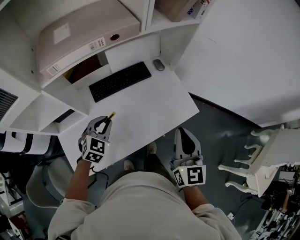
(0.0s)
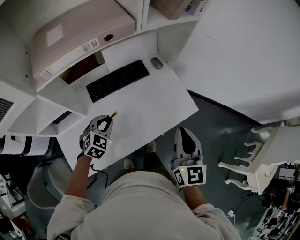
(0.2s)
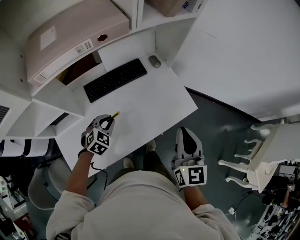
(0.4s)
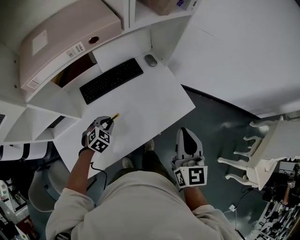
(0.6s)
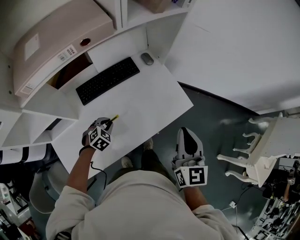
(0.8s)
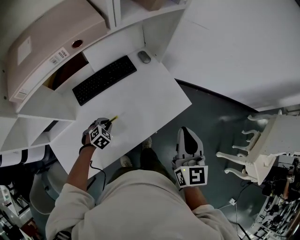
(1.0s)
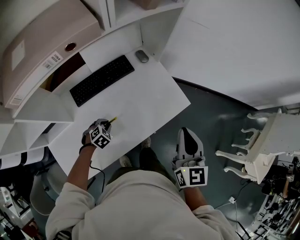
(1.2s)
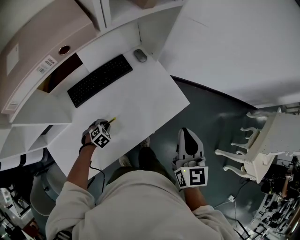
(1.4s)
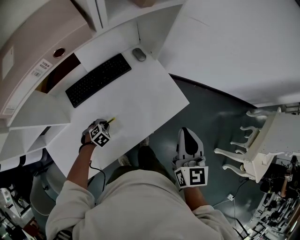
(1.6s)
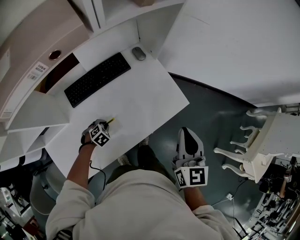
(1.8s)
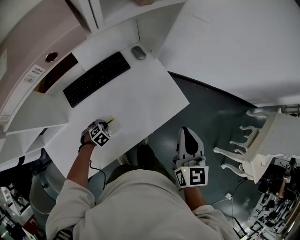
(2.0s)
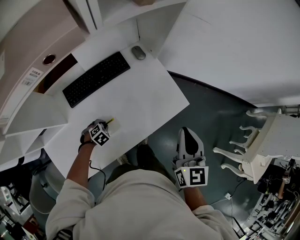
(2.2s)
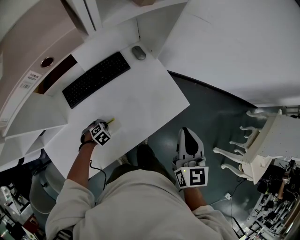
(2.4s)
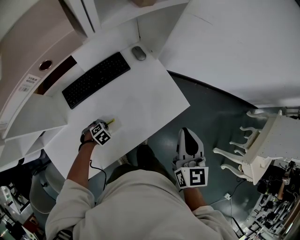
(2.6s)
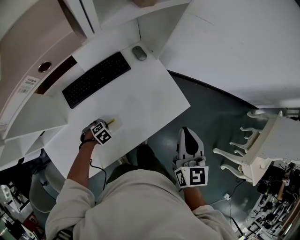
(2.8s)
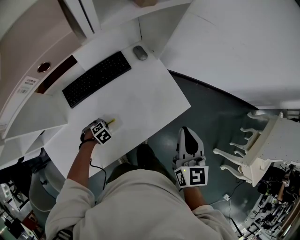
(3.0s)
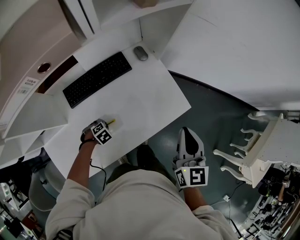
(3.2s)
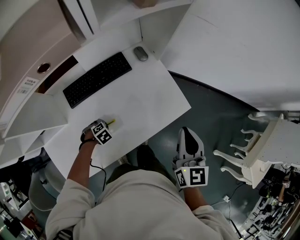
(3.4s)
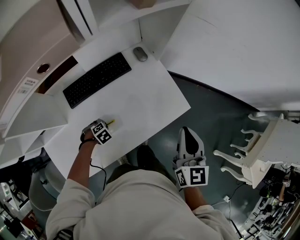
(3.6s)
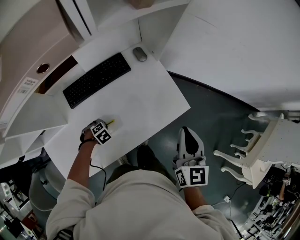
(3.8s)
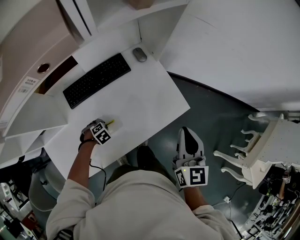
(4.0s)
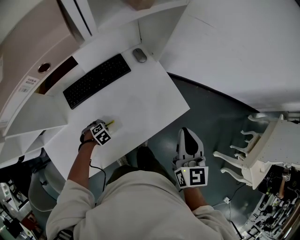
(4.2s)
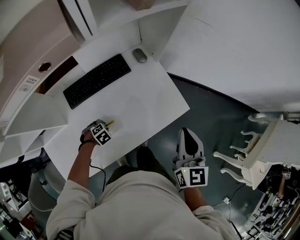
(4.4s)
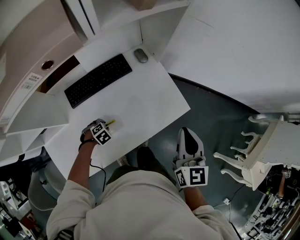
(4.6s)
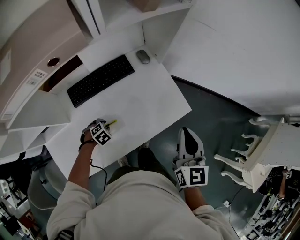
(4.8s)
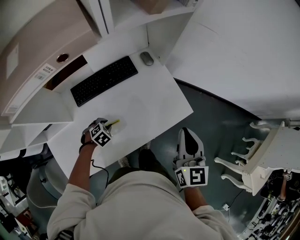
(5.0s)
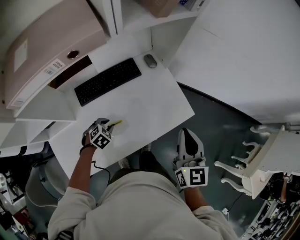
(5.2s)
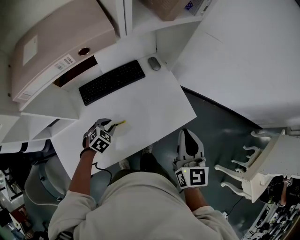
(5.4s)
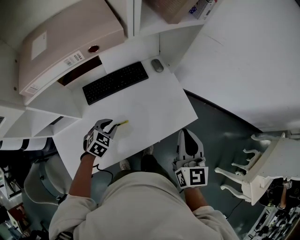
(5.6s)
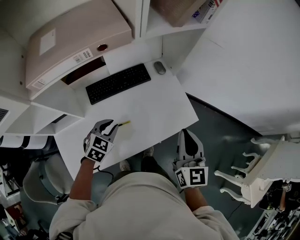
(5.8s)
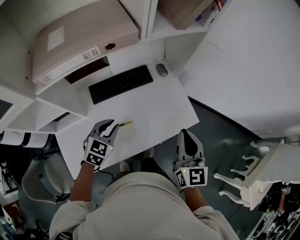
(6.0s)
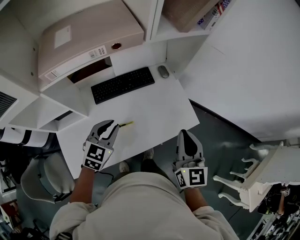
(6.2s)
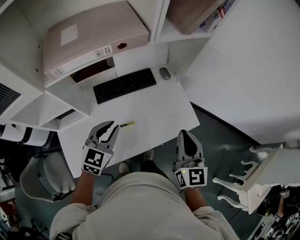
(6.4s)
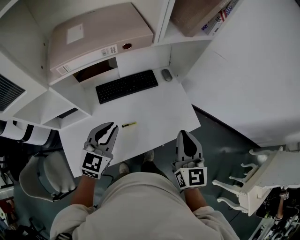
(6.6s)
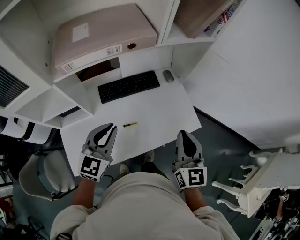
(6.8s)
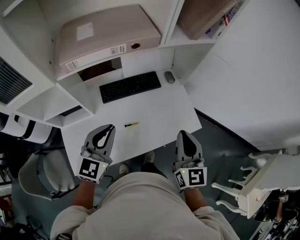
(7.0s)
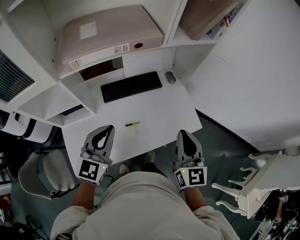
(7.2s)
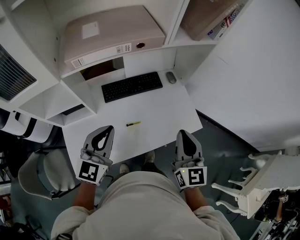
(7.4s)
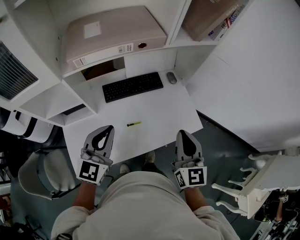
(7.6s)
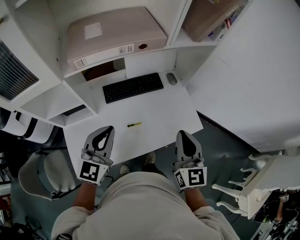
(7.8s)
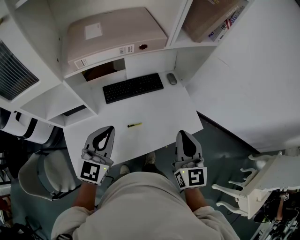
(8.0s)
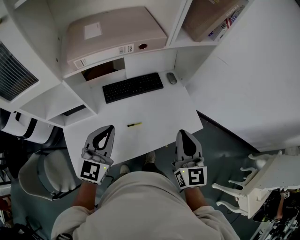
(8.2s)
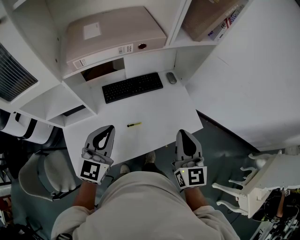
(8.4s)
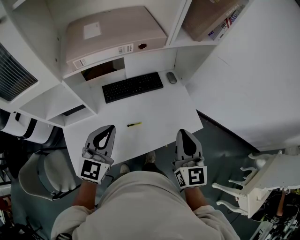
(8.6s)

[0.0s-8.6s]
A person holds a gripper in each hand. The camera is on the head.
0.0s to 1.4s: The left gripper heads downward, covering approximately 25 cm, and points its fingers roughly 30 degrees further downward, while the right gripper heads to the right and forward, covering approximately 10 cm.
1.4s to 2.8s: The left gripper heads downward, covering approximately 5 cm. The right gripper moves about 5 cm.
2.8s to 4.4s: The two grippers keep their place.
4.4s to 5.8s: The right gripper shifts by some 10 cm. Meanwhile the left gripper heads upward, covering approximately 25 cm, and points its fingers some 40 degrees further upward.
5.8s to 7.2s: The right gripper travels to the left by approximately 5 cm. Meanwhile the left gripper heads upward and backward, covering approximately 20 cm, and tips its fingers upward by roughly 30 degrees.
7.2s to 8.6s: The grippers make only small movements.

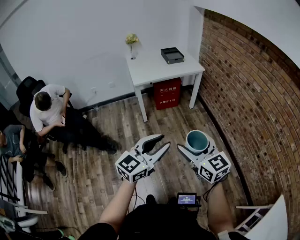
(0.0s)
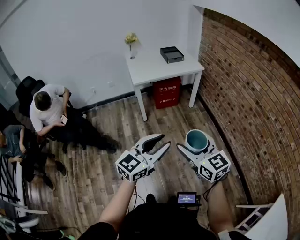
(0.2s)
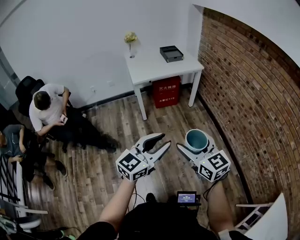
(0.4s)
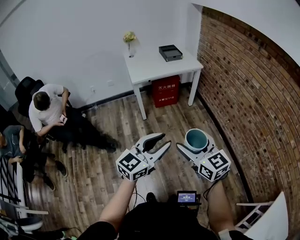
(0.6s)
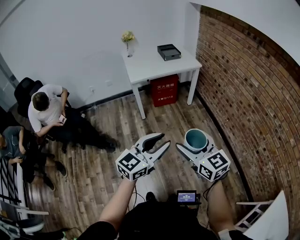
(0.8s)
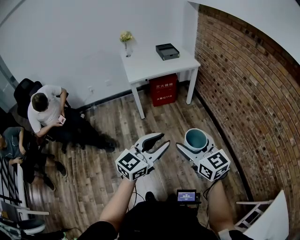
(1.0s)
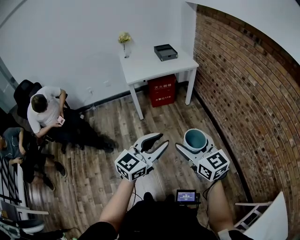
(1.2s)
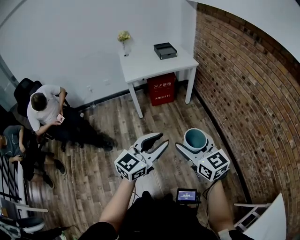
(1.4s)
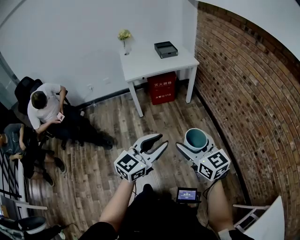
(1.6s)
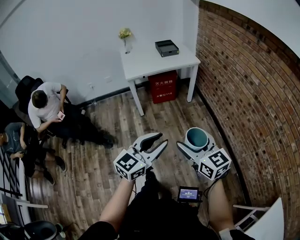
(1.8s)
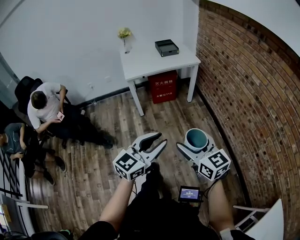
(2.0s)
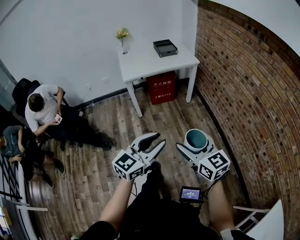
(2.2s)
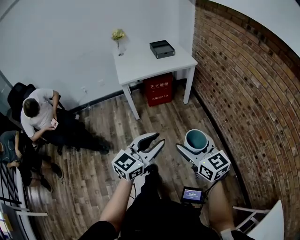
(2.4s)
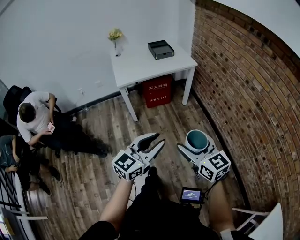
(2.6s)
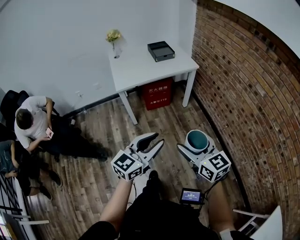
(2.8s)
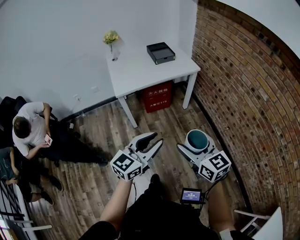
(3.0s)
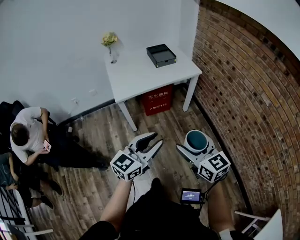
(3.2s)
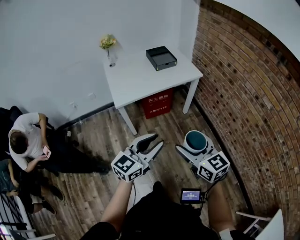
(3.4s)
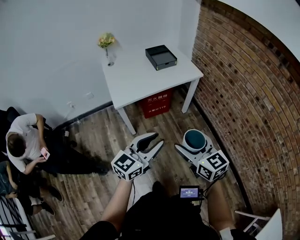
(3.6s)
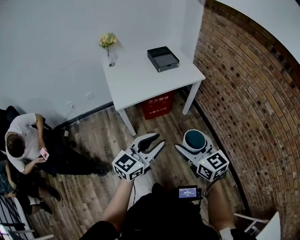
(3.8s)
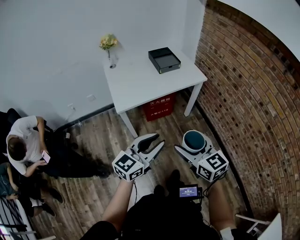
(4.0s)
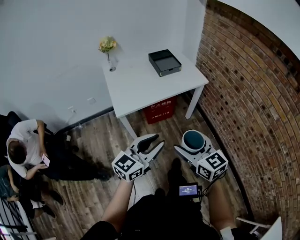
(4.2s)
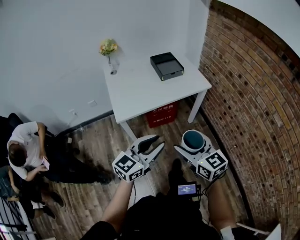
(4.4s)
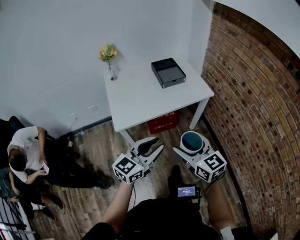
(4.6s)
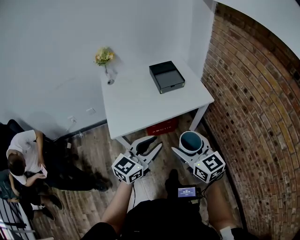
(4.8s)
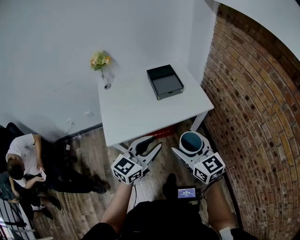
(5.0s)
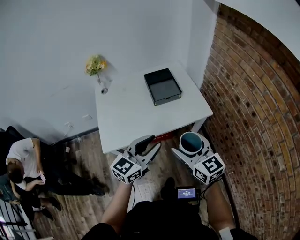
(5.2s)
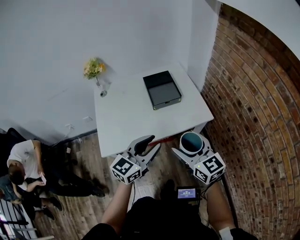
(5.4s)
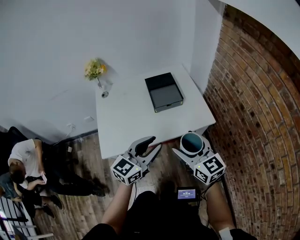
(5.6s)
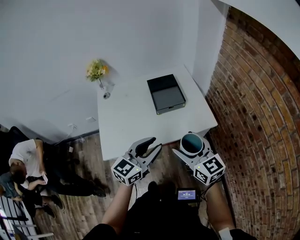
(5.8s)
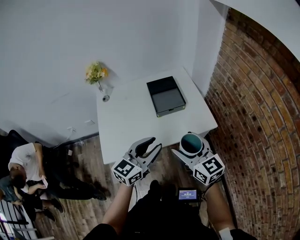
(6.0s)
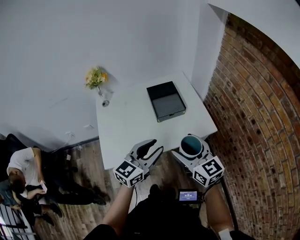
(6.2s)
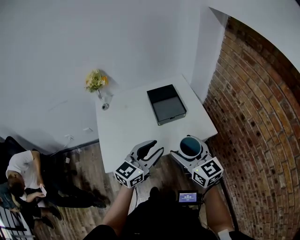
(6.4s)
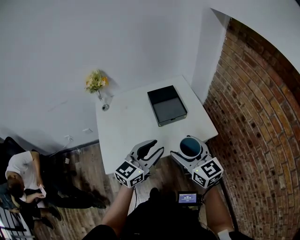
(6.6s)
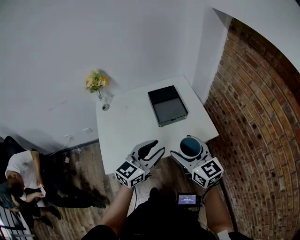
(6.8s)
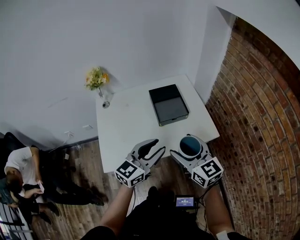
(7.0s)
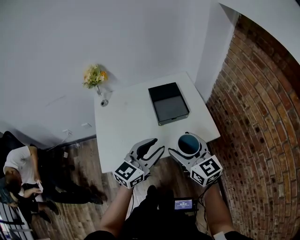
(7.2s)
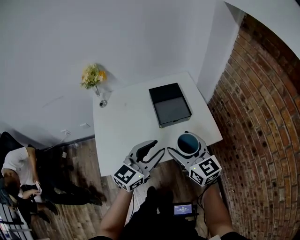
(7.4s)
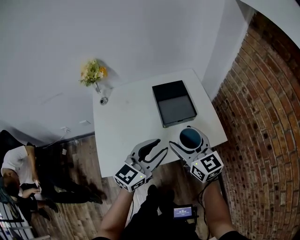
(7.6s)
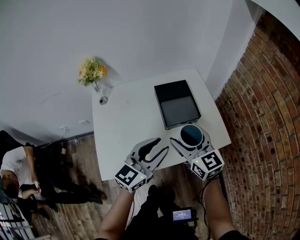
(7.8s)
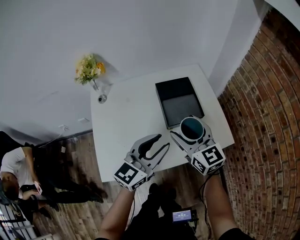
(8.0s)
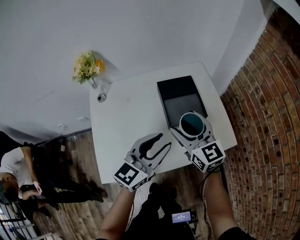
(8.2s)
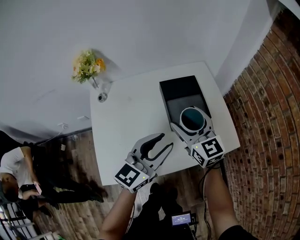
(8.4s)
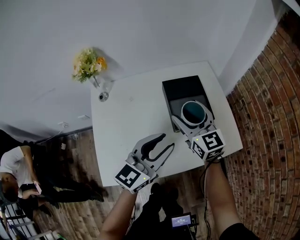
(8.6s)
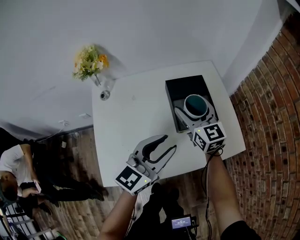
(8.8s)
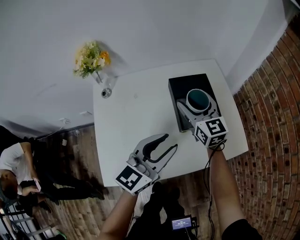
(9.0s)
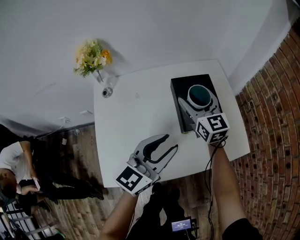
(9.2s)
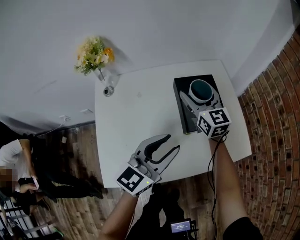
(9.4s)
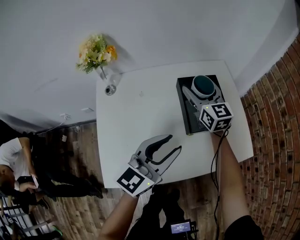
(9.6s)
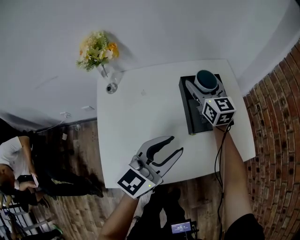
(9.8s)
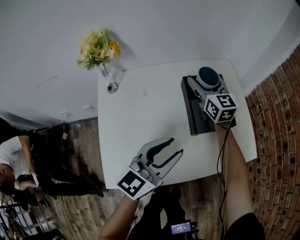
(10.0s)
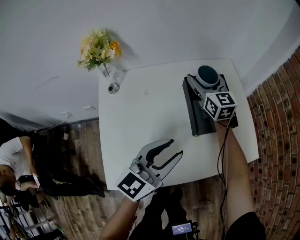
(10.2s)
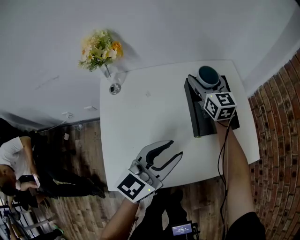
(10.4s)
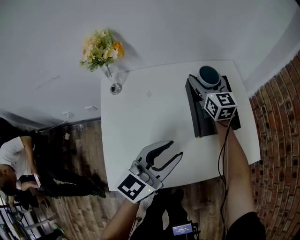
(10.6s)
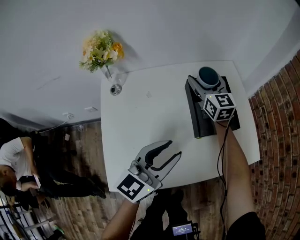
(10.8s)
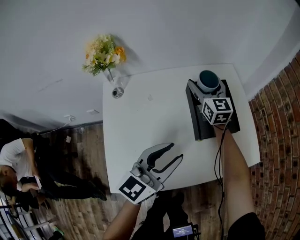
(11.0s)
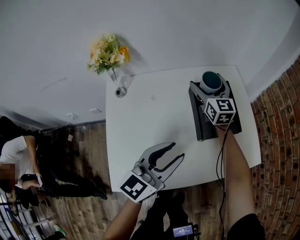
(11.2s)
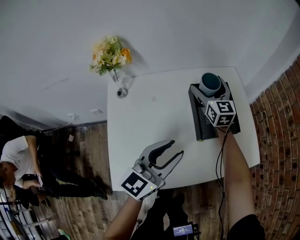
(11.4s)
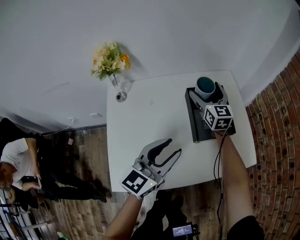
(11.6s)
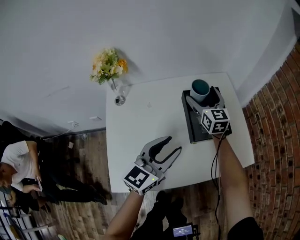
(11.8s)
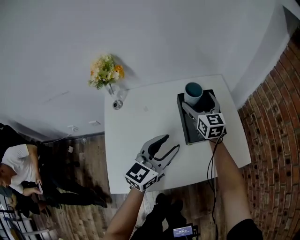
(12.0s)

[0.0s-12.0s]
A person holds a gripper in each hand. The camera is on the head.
0.0s to 1.6s: Both grippers travel together to the right, approximately 10 cm.
1.6s to 3.0s: Both grippers travel together forward, roughly 25 cm.
3.0s to 4.4s: The right gripper is displaced forward and to the left by roughly 25 cm. Meanwhile the left gripper goes approximately 20 cm forward.
4.4s to 6.0s: Both grippers travel together forward, about 30 cm.
6.0s to 7.6s: The left gripper heads forward, covering roughly 10 cm. The right gripper is displaced forward and to the left by about 15 cm.
7.6s to 9.0s: The left gripper moves forward and to the left, approximately 10 cm; the right gripper heads forward, covering about 20 cm.
9.0s to 10.4s: The right gripper goes some 10 cm forward.
10.4s to 12.0s: The right gripper moves about 5 cm.

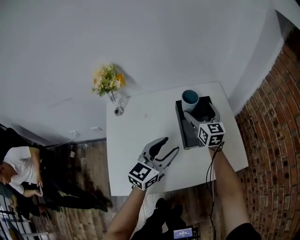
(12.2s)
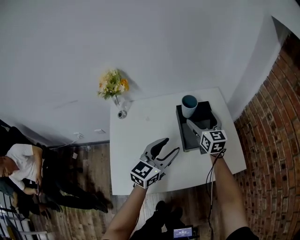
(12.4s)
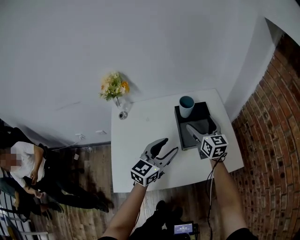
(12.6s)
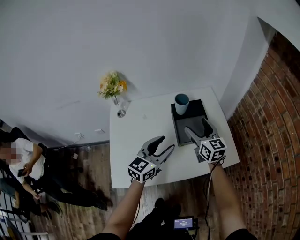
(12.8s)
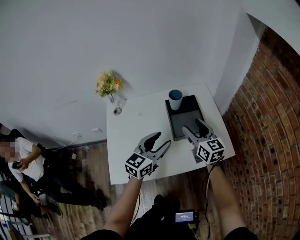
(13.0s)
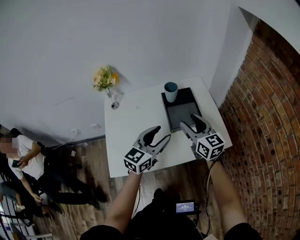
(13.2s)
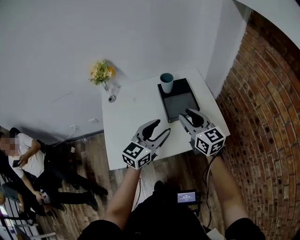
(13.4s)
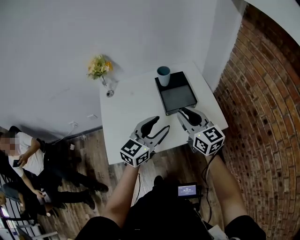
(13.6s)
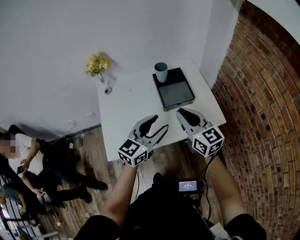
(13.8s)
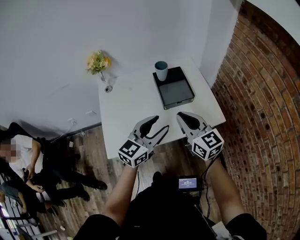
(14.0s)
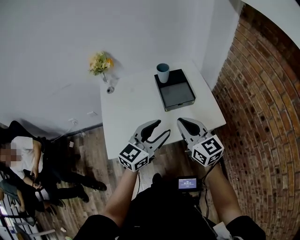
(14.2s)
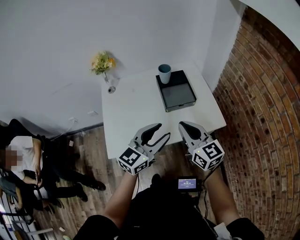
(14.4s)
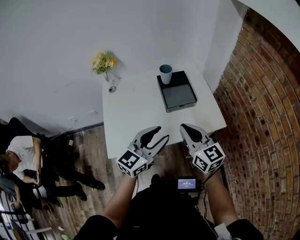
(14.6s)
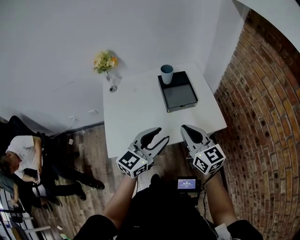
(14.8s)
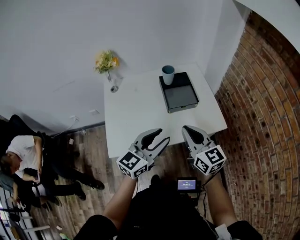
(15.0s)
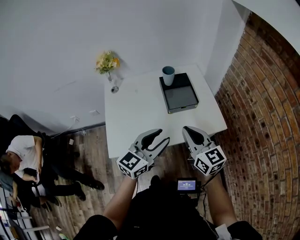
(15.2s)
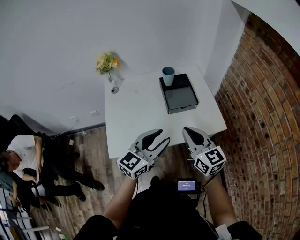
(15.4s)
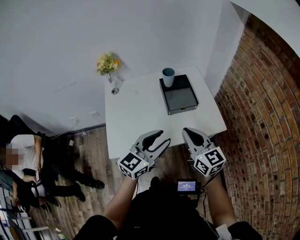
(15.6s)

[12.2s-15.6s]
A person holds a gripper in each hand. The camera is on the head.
12.2s to 13.8s: The left gripper heads backward, upward and to the right, covering roughly 15 cm, while the right gripper moves backward and upward, about 30 cm, and closes up.
13.8s to 15.6s: Both grippers move backward, approximately 5 cm.
